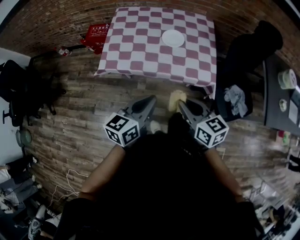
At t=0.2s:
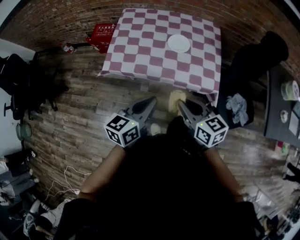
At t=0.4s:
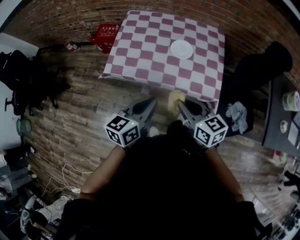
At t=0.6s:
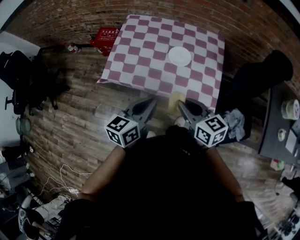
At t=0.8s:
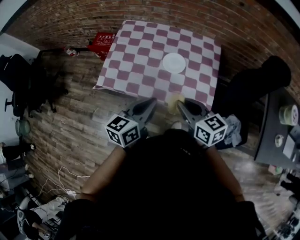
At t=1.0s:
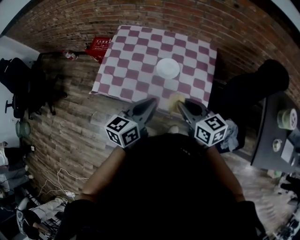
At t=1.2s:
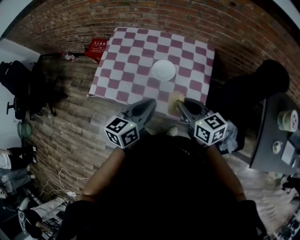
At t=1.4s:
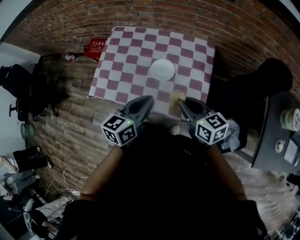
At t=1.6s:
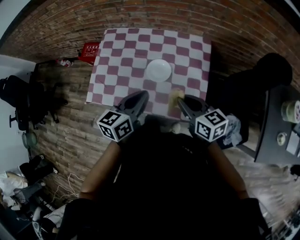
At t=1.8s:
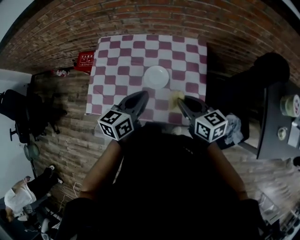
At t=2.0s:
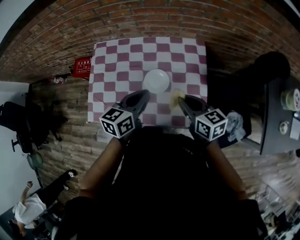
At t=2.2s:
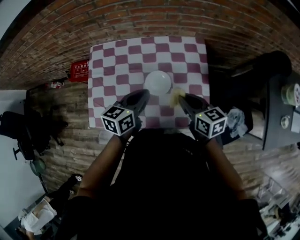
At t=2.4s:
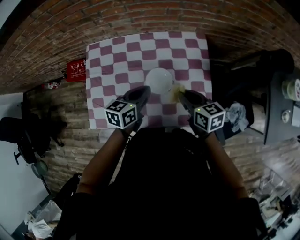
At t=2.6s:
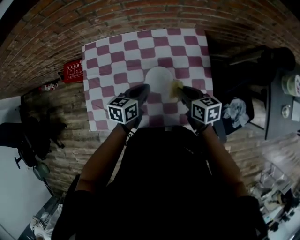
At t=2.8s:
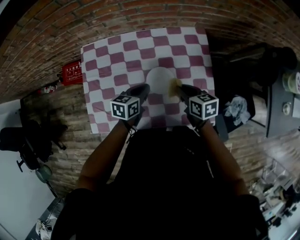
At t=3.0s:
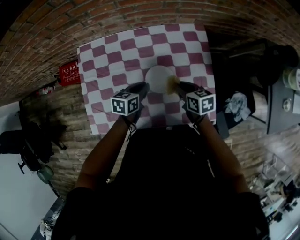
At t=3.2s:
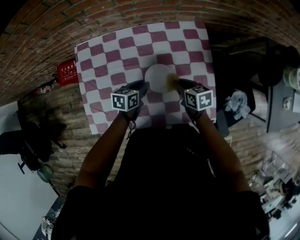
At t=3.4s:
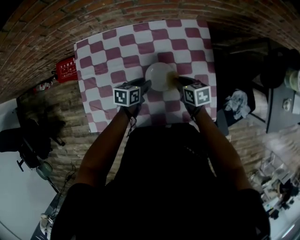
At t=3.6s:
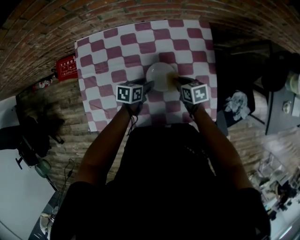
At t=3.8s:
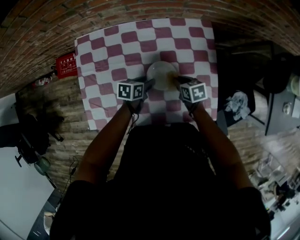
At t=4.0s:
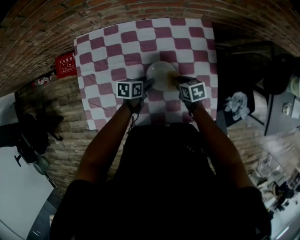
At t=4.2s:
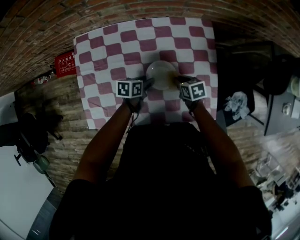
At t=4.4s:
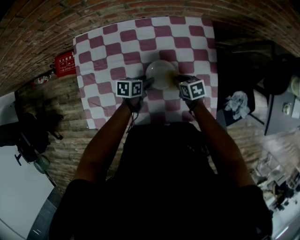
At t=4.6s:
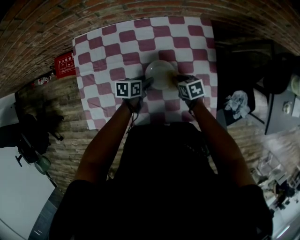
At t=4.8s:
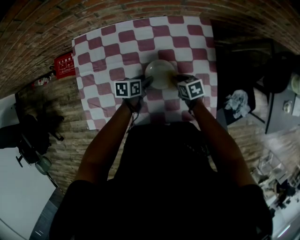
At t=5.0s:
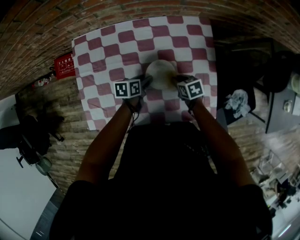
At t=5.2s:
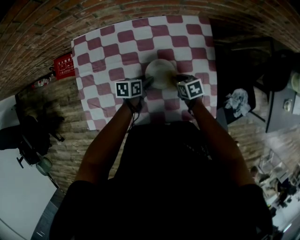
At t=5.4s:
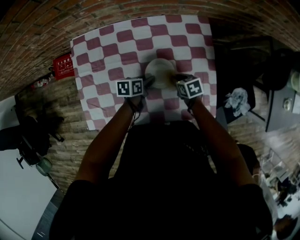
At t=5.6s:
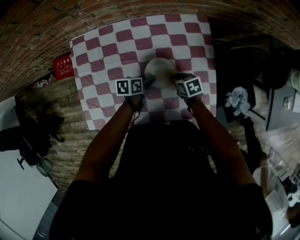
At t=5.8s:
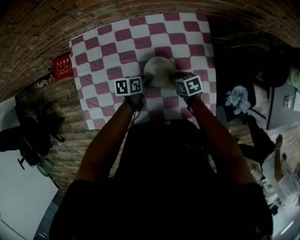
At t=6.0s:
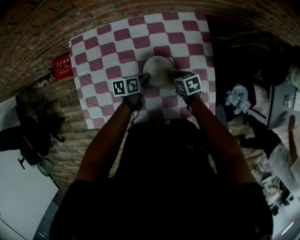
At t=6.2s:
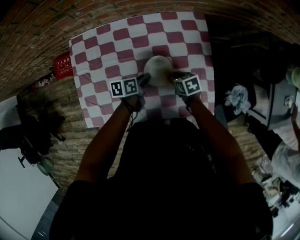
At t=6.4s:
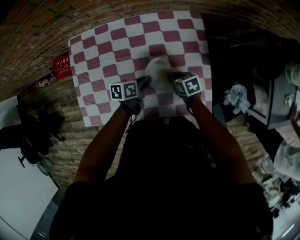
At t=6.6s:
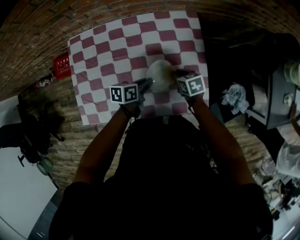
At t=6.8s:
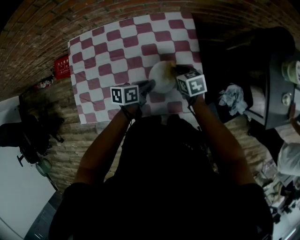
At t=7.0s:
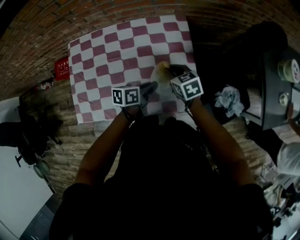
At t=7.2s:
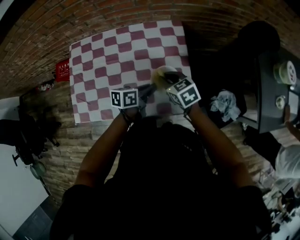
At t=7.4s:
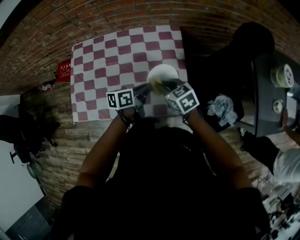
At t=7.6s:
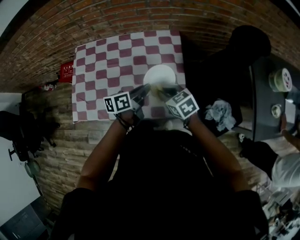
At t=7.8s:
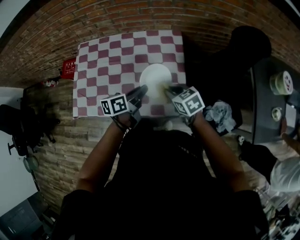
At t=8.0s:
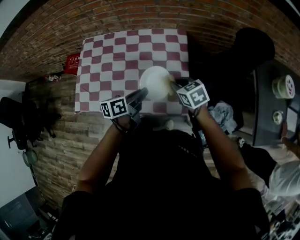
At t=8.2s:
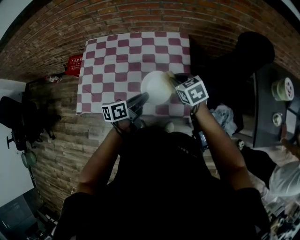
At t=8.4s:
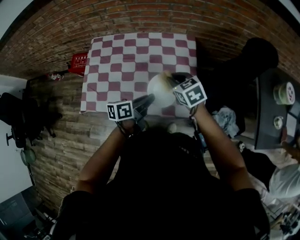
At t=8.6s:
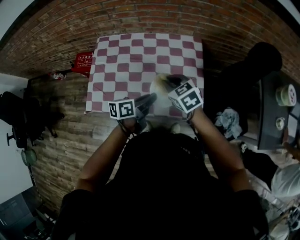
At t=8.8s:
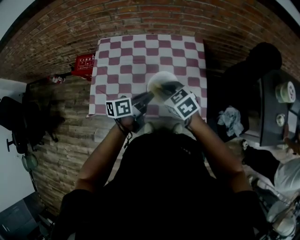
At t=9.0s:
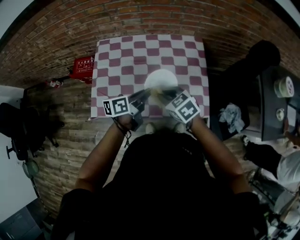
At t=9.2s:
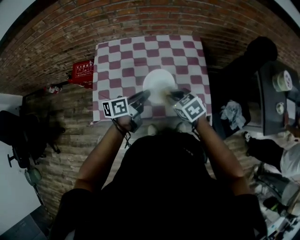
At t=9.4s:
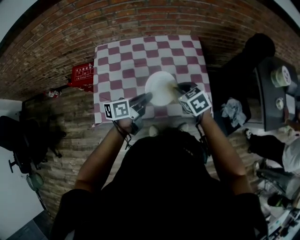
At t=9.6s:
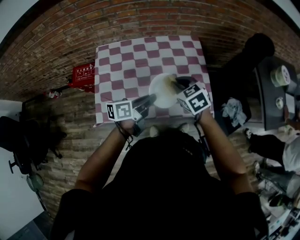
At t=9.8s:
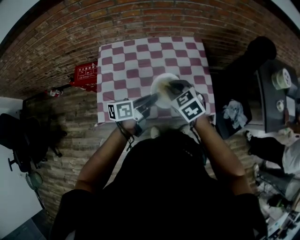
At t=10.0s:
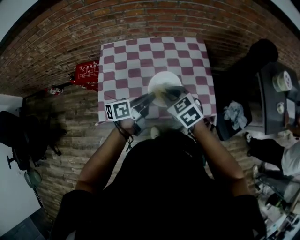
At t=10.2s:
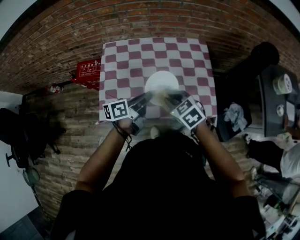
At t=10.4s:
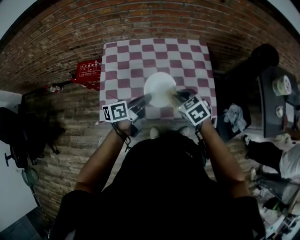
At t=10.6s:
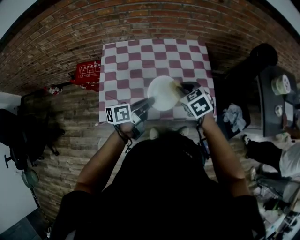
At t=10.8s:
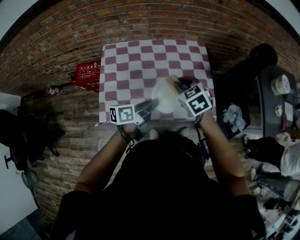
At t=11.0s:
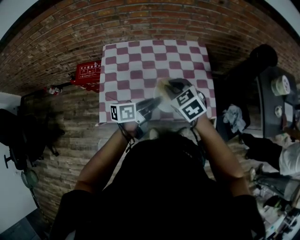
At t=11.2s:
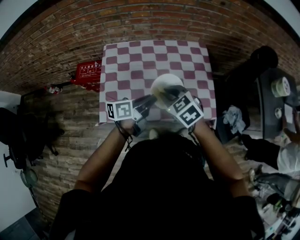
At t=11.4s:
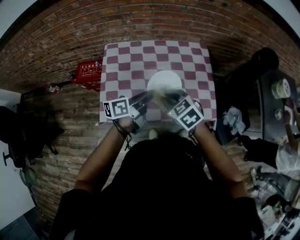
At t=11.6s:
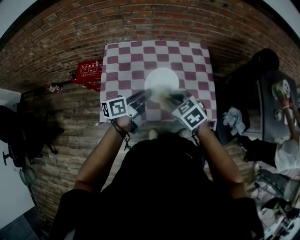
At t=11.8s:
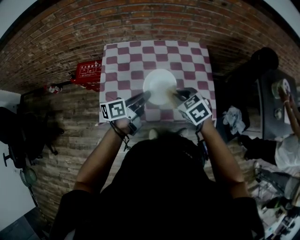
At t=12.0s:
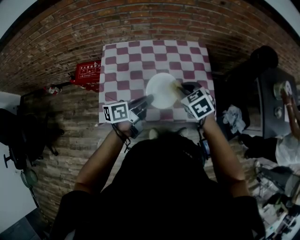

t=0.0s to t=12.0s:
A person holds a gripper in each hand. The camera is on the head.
t=0.0s to t=1.6s: The two grippers go roughly 30 cm forward and to the right.
t=1.6s to t=3.0s: Both grippers travel together downward and forward, approximately 25 cm. The left gripper turns by some 30 degrees, while the right gripper turns by some 30 degrees.
t=3.0s to t=4.4s: Both grippers move downward, some 10 cm. The left gripper opens up.
t=4.4s to t=6.0s: The left gripper closes.
t=6.0s to t=7.6s: The left gripper moves upward, to the right and backward, approximately 25 cm, and swivels roughly 20 degrees, while the right gripper travels upward, backward and to the right by some 25 cm, and turns by approximately 30 degrees.
t=7.6s to t=9.0s: The grippers both shift to the left by some 20 cm.
t=9.0s to t=10.4s: The right gripper goes left and right, some 10 cm each way, reversing 2 times; the left gripper goes approximately 5 cm to the left.
t=10.4s to t=12.0s: The right gripper moves about 5 cm to the left and comes back.

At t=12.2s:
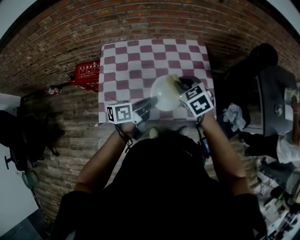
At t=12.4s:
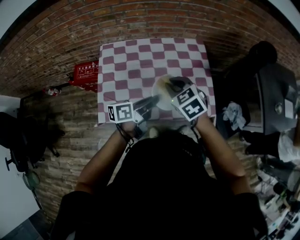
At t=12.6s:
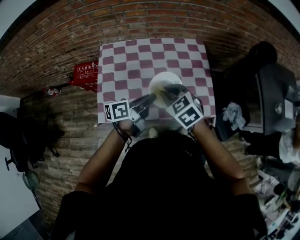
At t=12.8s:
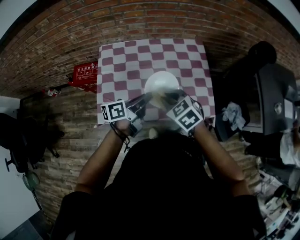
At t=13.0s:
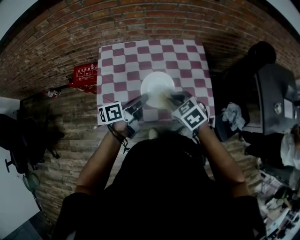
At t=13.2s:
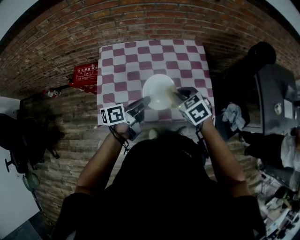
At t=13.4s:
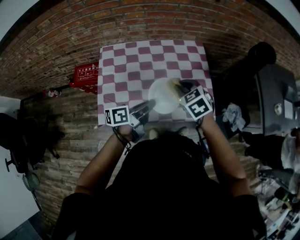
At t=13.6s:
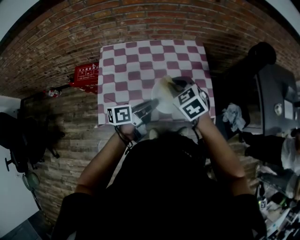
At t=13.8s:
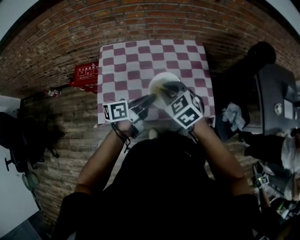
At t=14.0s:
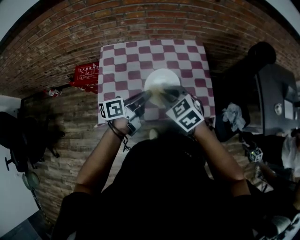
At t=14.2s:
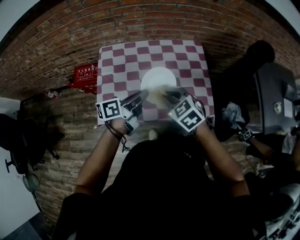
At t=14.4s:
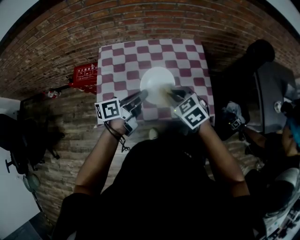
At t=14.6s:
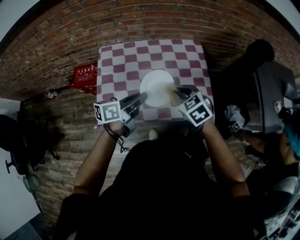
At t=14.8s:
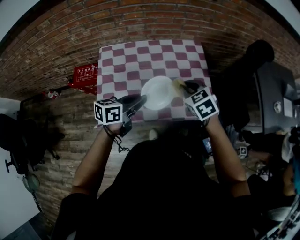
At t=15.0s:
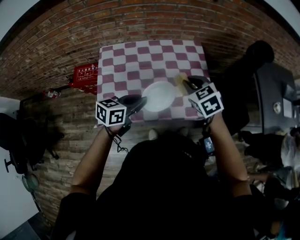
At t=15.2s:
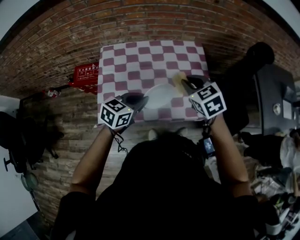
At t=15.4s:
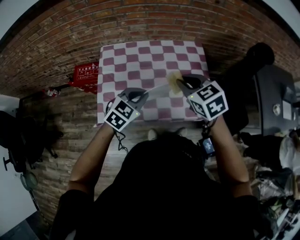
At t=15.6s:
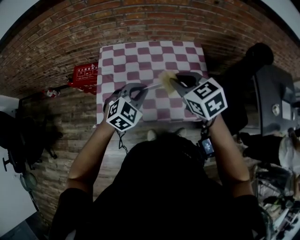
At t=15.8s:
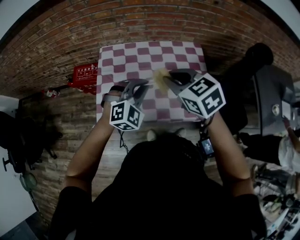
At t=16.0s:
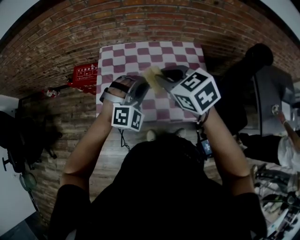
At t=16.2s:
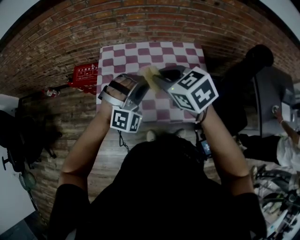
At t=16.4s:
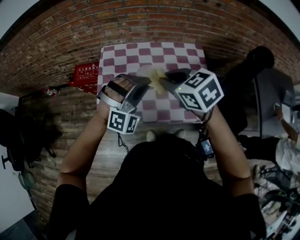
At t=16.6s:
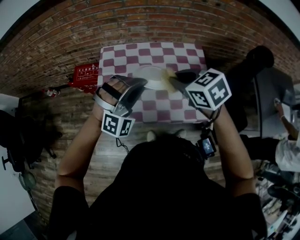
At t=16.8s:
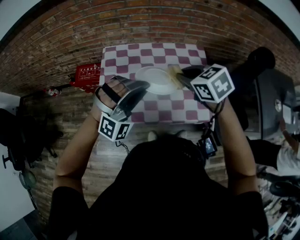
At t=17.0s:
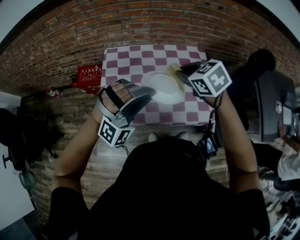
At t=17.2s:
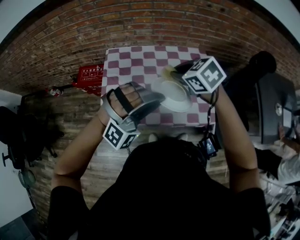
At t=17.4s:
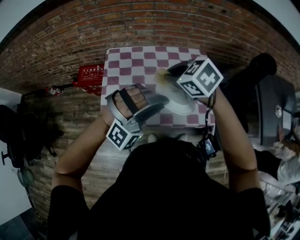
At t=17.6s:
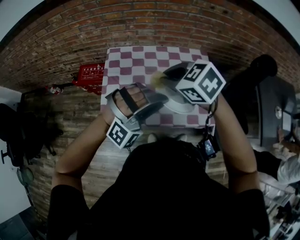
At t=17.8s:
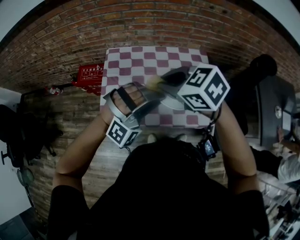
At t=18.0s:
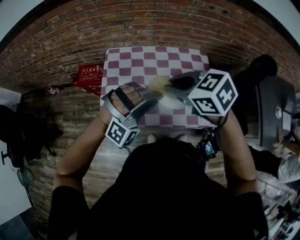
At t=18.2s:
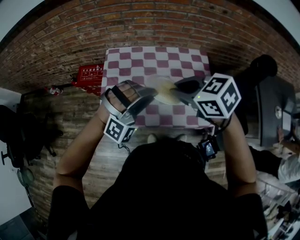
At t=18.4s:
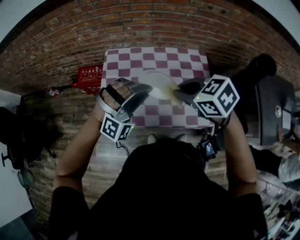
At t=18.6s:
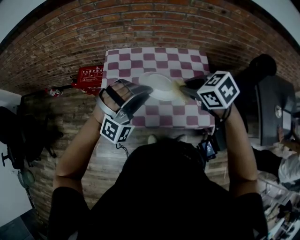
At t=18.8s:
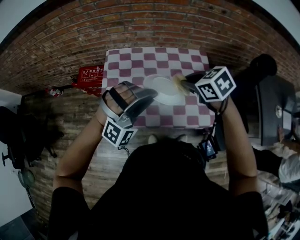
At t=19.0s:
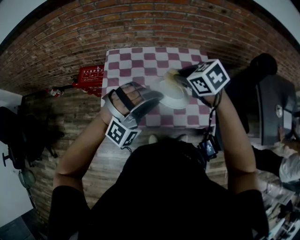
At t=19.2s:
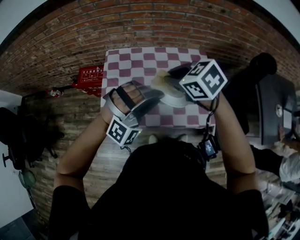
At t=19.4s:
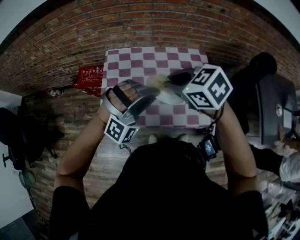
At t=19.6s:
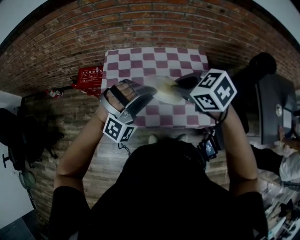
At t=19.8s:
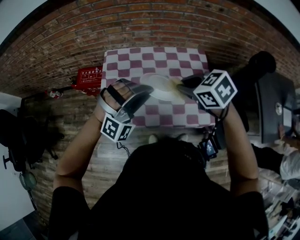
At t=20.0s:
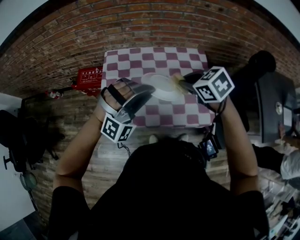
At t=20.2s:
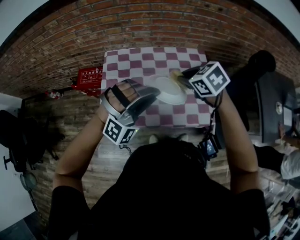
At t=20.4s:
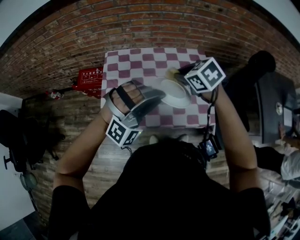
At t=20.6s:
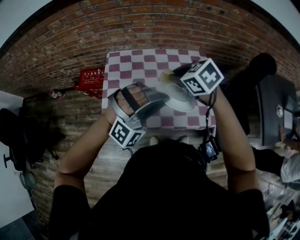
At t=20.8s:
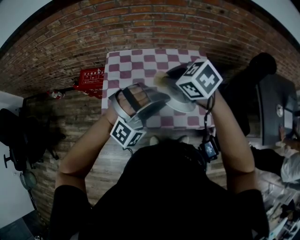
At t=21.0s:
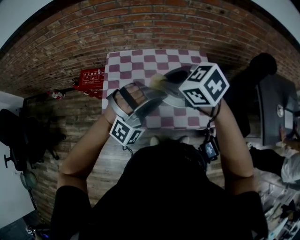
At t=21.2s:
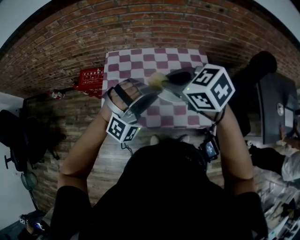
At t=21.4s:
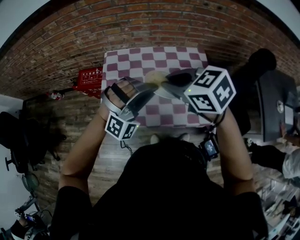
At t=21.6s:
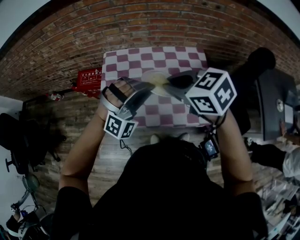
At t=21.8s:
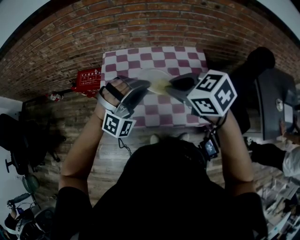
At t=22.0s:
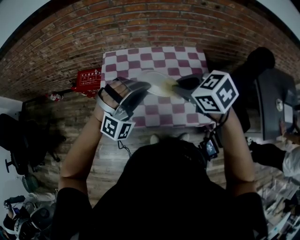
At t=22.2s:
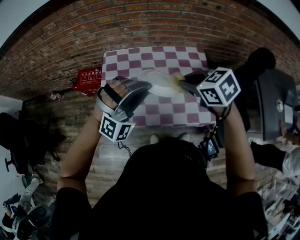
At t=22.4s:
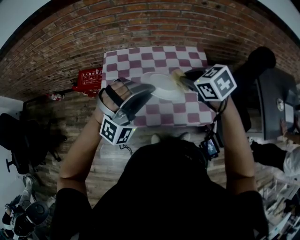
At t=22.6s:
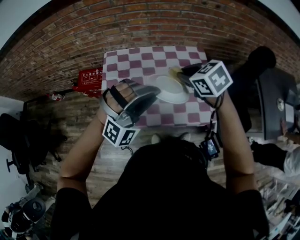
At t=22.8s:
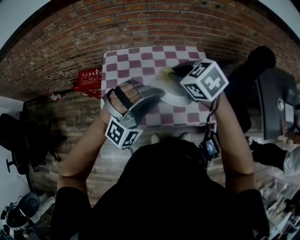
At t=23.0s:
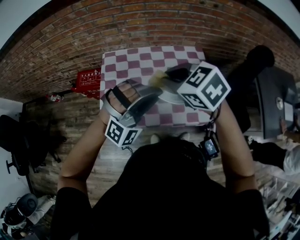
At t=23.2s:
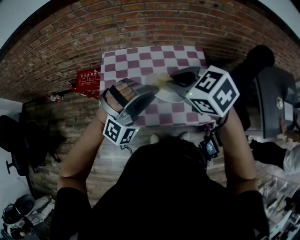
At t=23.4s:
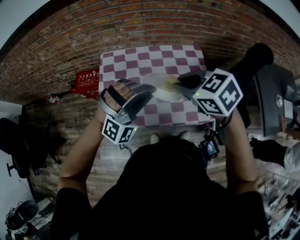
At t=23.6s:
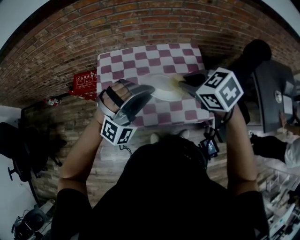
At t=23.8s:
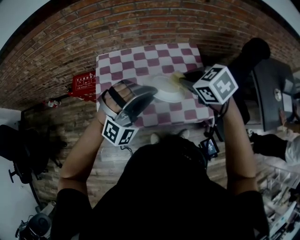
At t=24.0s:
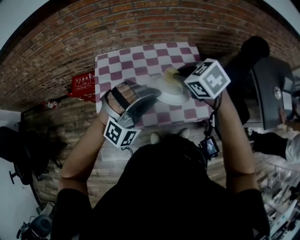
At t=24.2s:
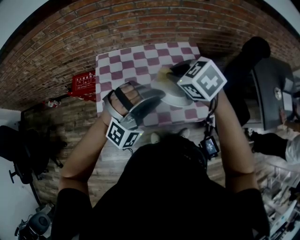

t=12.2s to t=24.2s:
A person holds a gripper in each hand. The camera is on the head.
t=12.2s to t=13.8s: The right gripper moves forward and backward over approximately 5 cm, changing direction 2 times.
t=13.8s to t=15.2s: The right gripper moves to the right, approximately 10 cm. The left gripper rolls clockwise, seen from behind, by approximately 40 degrees.
t=15.2s to t=16.6s: The left gripper is displaced upward by approximately 10 cm, and rotates around the line of its fingers by roughly 90 degrees, clockwise from behind.
t=16.6s to t=18.2s: The right gripper travels to the left and back again, roughly 5 cm each way.
t=18.2s to t=19.8s: The right gripper moves left and right over about 10 cm, changing direction 2 times.
t=19.8s to t=21.2s: The right gripper shifts roughly 10 cm to the left and upward.
t=21.2s to t=22.6s: The right gripper heads to the right and downward, covering roughly 10 cm.
t=22.6s to t=24.2s: The right gripper goes left and right, roughly 10 cm each way, reversing 2 times.
